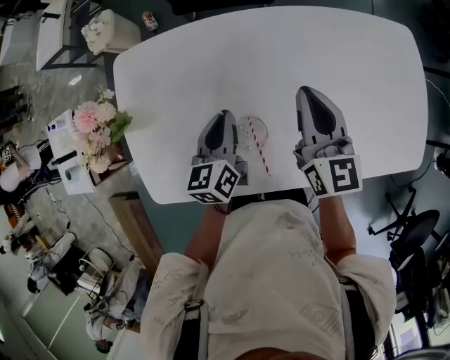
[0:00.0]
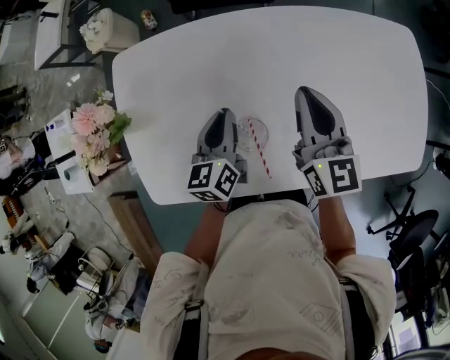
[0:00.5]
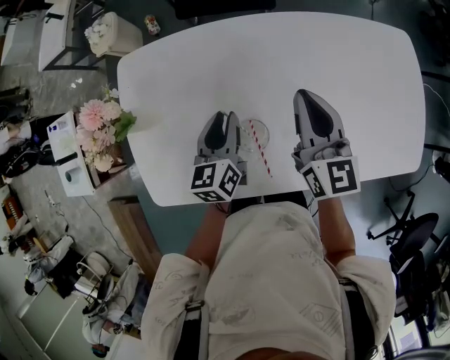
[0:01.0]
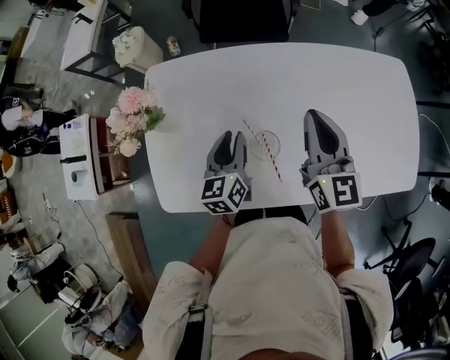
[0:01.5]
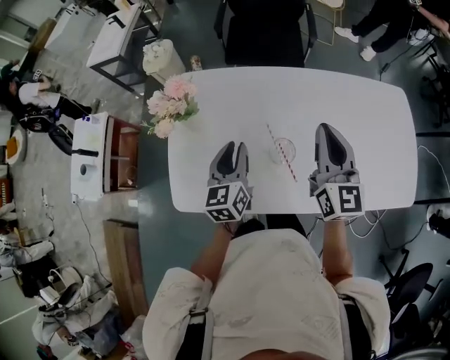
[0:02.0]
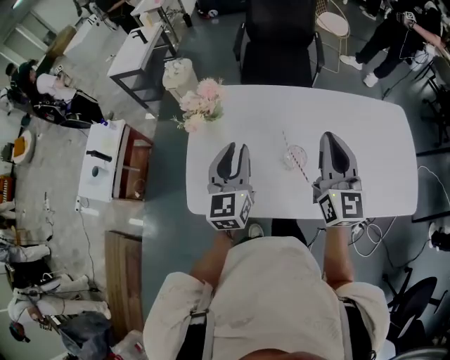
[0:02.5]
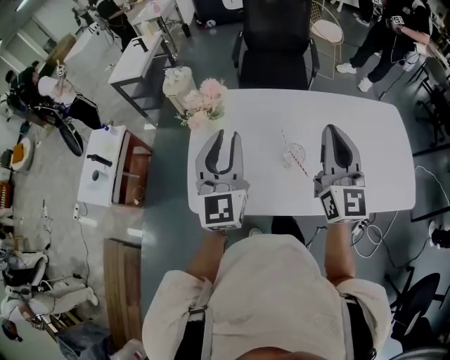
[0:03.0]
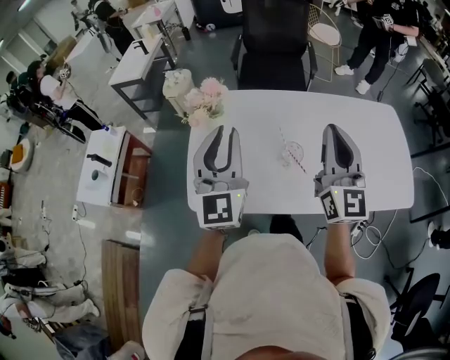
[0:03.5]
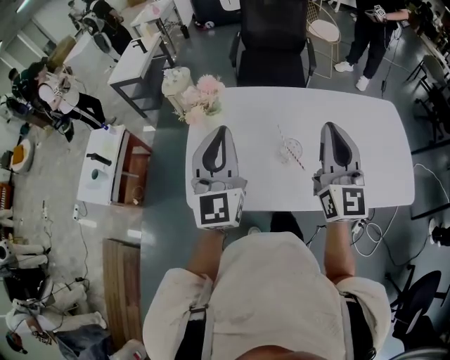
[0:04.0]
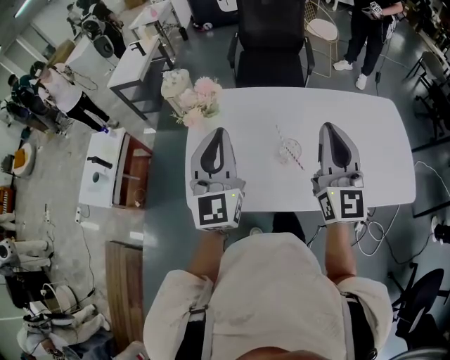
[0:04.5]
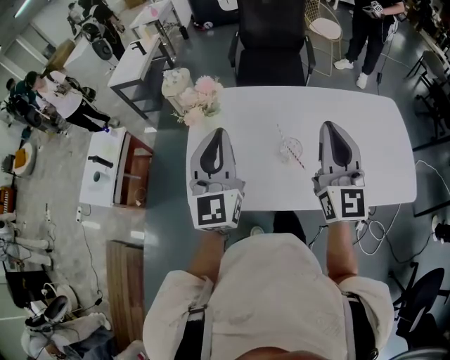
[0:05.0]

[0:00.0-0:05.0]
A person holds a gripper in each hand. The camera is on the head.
0:00.0 to 0:02.5: The right gripper travels upward, backward and to the left by some 25 cm. The left gripper heads upward, to the left and backward, covering some 25 cm, and changes its angle by approximately 30 degrees.
0:02.5 to 0:05.0: The right gripper heads backward and upward, covering approximately 10 cm, while the left gripper travels upward and backward by roughly 10 cm, and closes up.

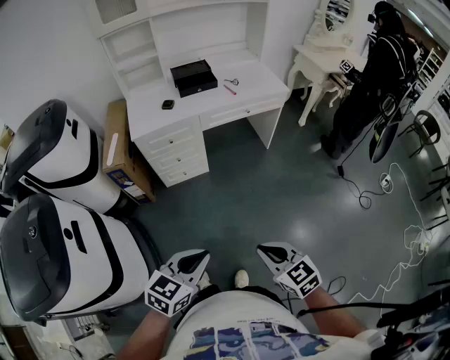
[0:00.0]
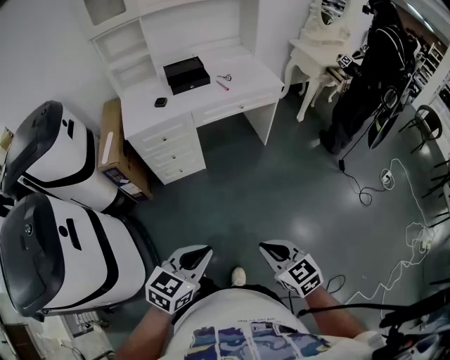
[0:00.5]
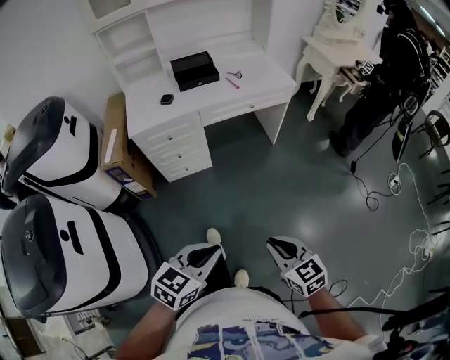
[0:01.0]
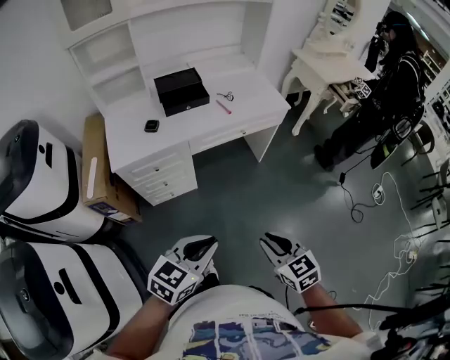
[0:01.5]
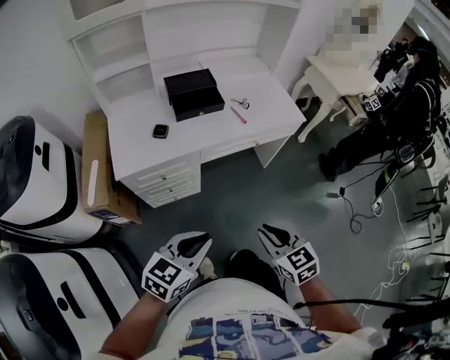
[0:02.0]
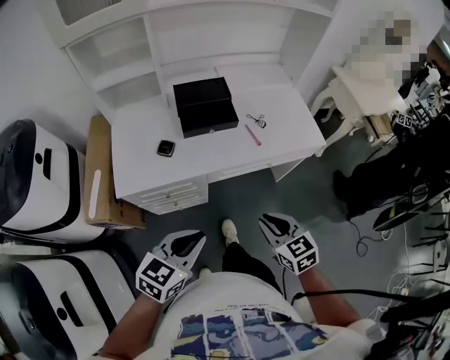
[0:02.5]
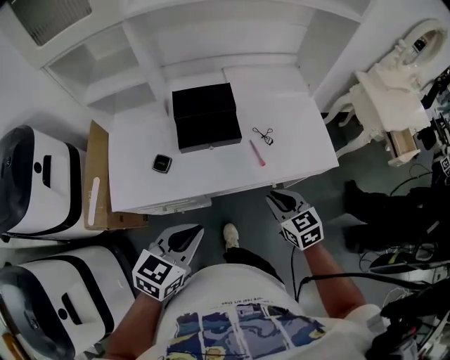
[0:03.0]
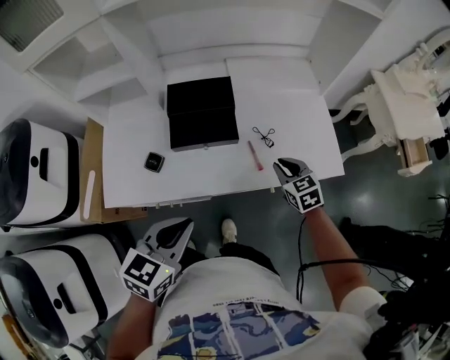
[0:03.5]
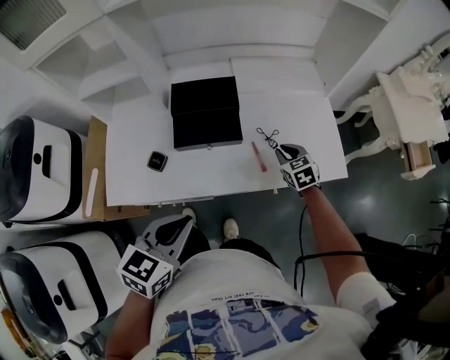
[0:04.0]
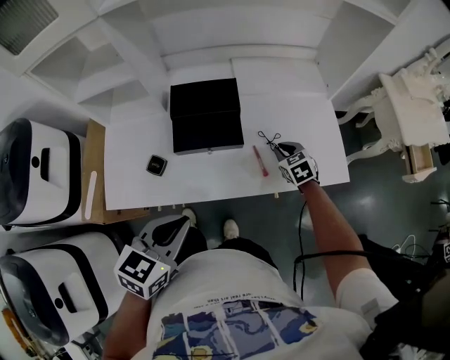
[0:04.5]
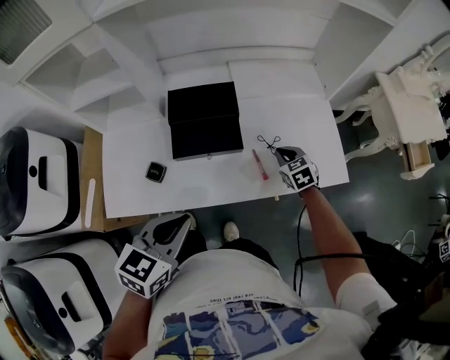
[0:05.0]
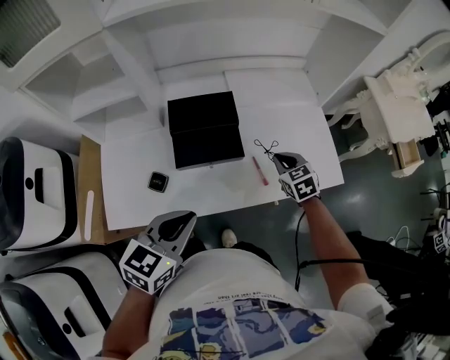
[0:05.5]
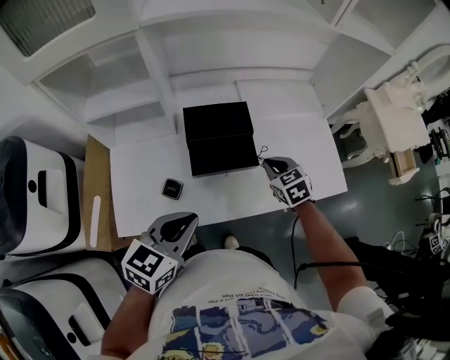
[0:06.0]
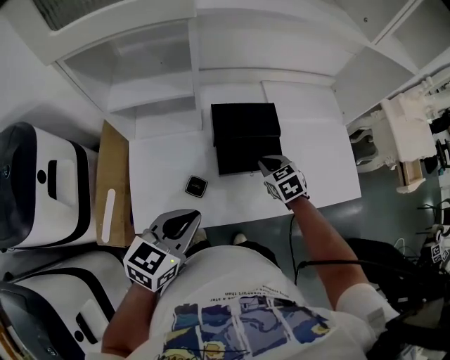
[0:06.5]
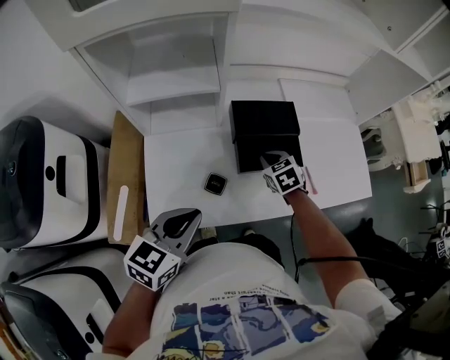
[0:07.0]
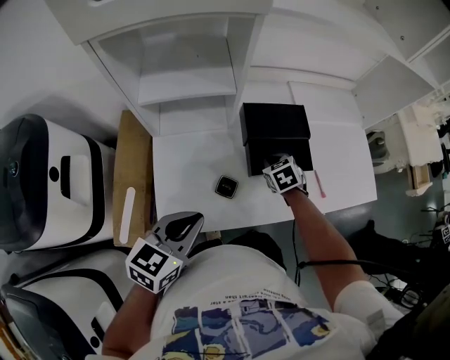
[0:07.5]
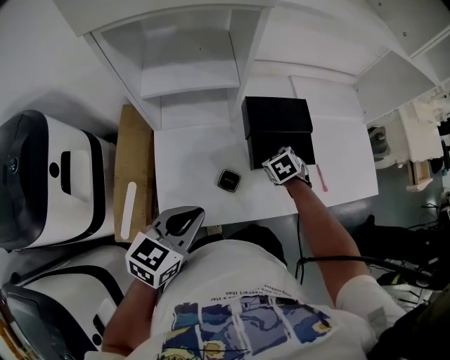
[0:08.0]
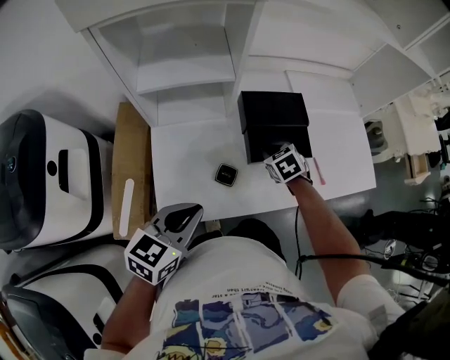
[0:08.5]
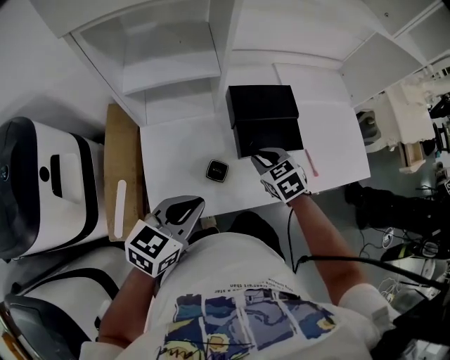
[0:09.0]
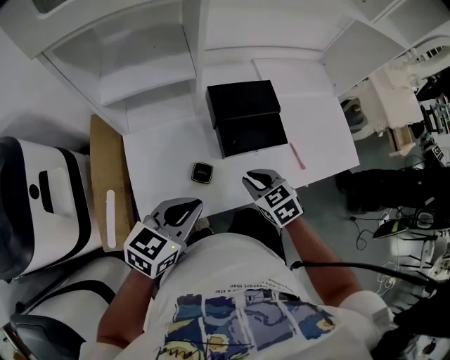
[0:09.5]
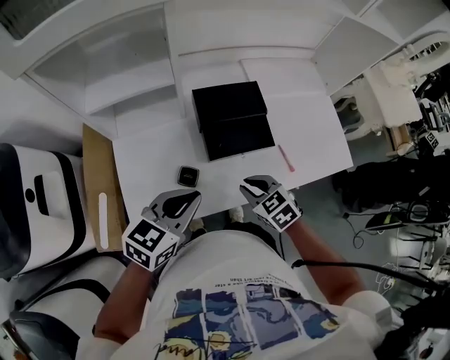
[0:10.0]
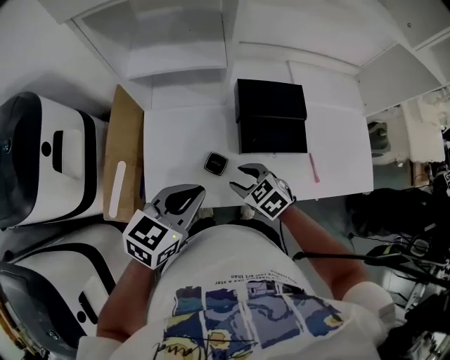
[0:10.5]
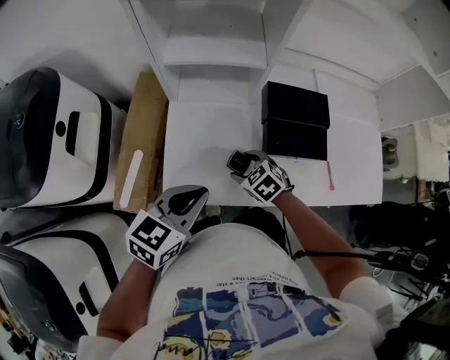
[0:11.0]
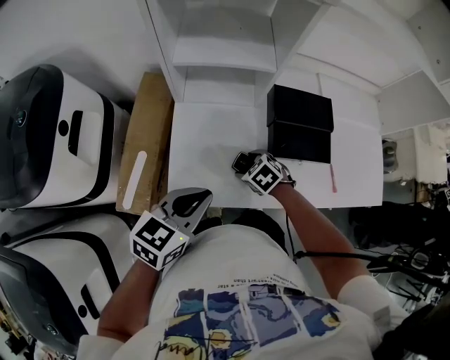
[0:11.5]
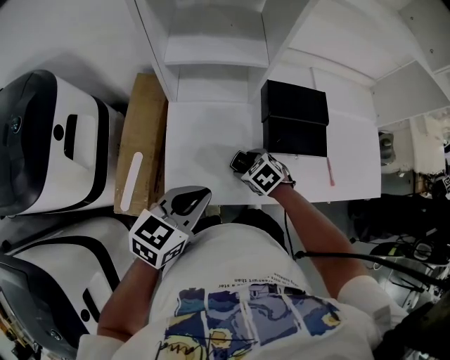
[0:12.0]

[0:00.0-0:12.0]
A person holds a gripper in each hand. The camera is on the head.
0:00.0 to 0:02.0: The grippers both shift forward by about 30 cm.
0:02.0 to 0:04.0: The right gripper moves forward, roughly 60 cm; the left gripper moves forward, about 30 cm, and rotates some 20 degrees.
0:04.0 to 0:06.0: The right gripper shifts approximately 15 cm to the left and upward; the left gripper shifts some 10 cm to the left and forward.
0:06.0 to 0:08.0: The right gripper travels to the left and downward by about 20 cm. Meanwhile the left gripper is displaced to the left by roughly 15 cm.
0:08.0 to 0:10.0: The right gripper goes some 15 cm backward and upward. The left gripper travels to the right by some 10 cm.
0:10.0 to 0:12.0: The right gripper moves to the left and downward, approximately 20 cm, turns by approximately 20 degrees, and opens; the left gripper shifts roughly 15 cm to the left.

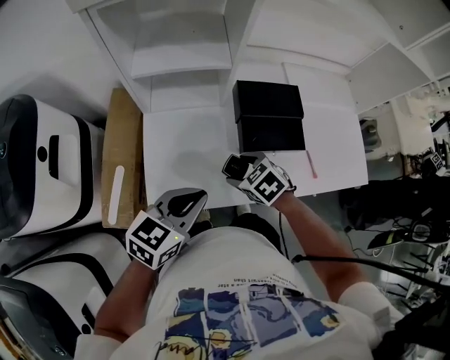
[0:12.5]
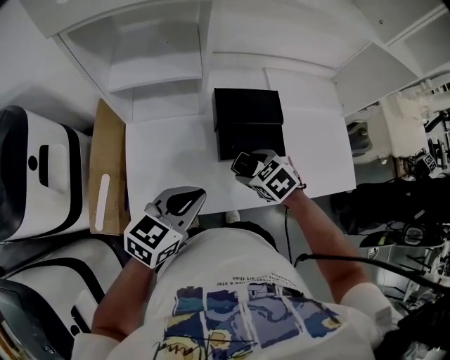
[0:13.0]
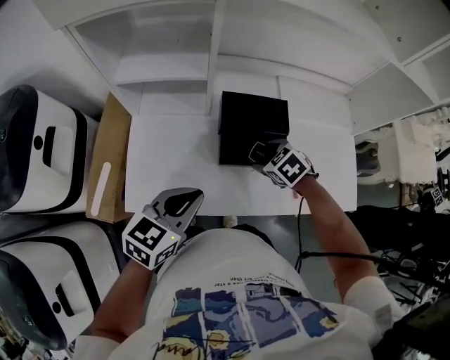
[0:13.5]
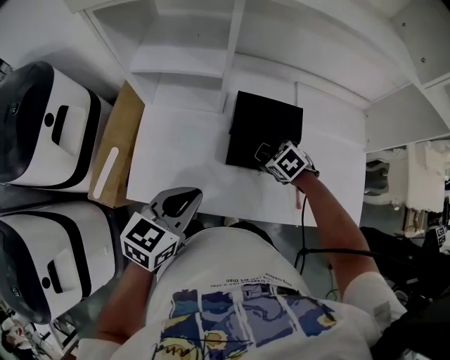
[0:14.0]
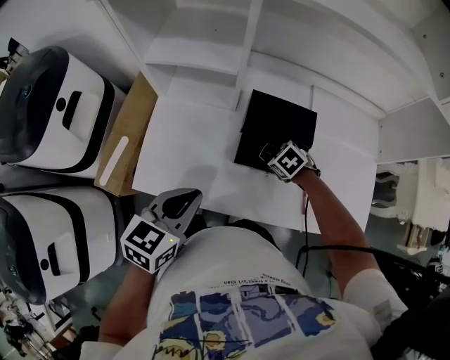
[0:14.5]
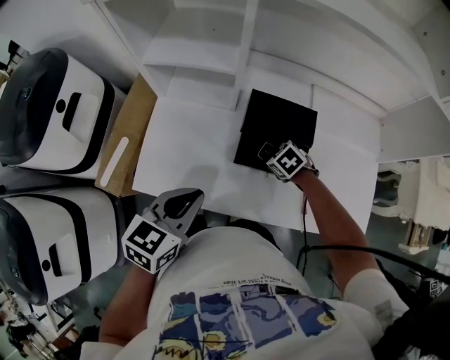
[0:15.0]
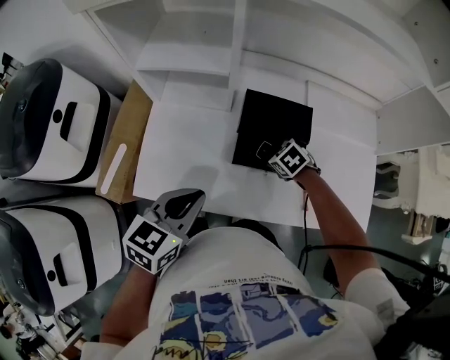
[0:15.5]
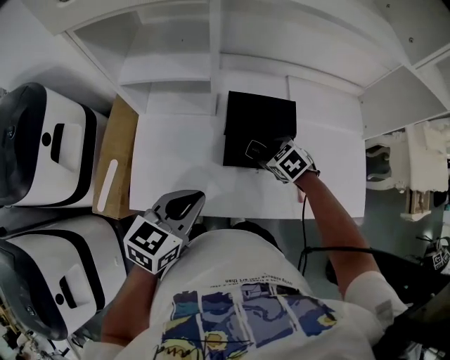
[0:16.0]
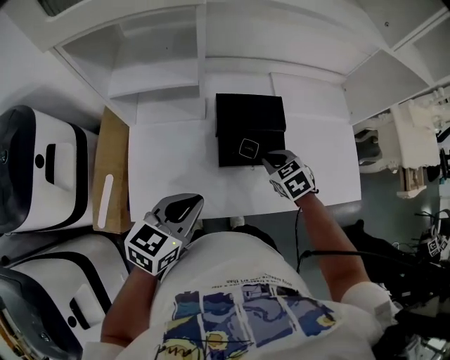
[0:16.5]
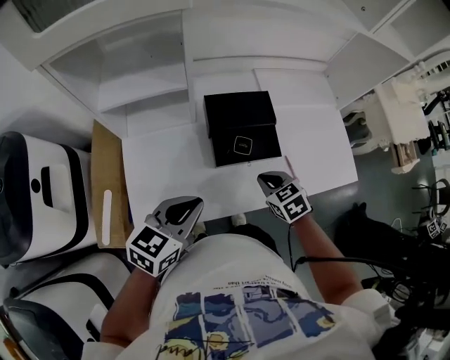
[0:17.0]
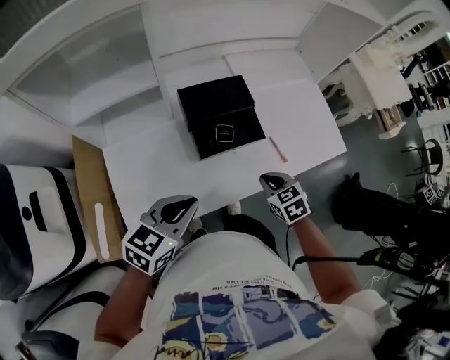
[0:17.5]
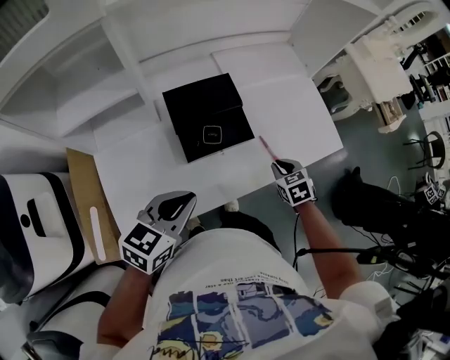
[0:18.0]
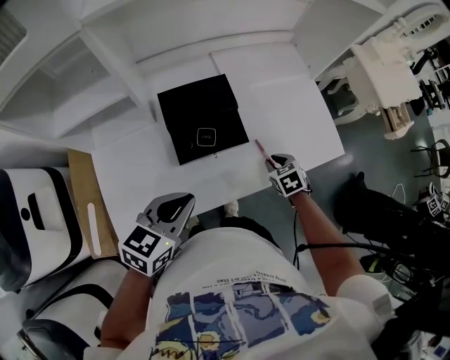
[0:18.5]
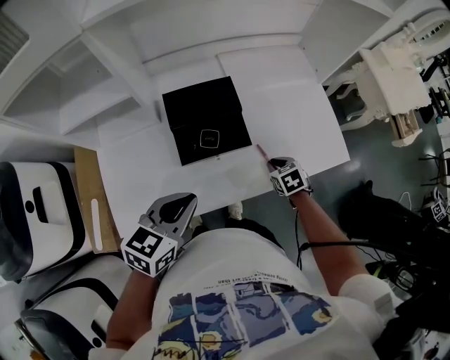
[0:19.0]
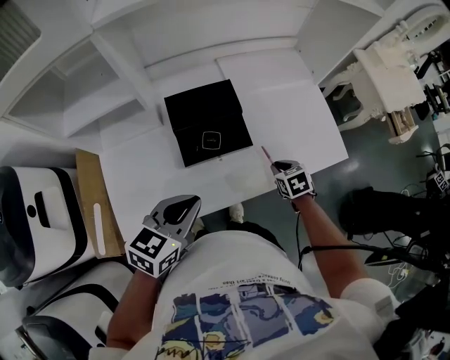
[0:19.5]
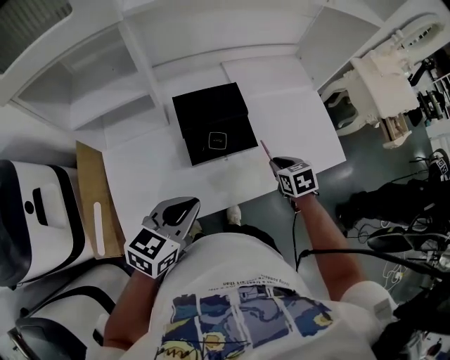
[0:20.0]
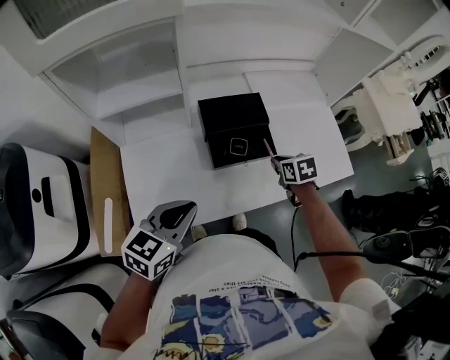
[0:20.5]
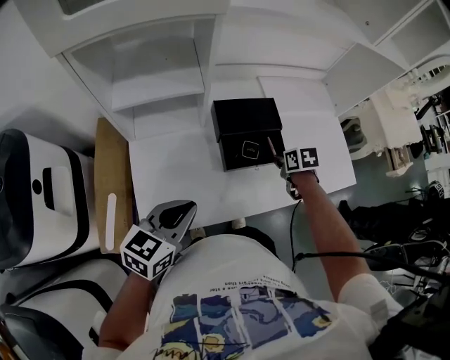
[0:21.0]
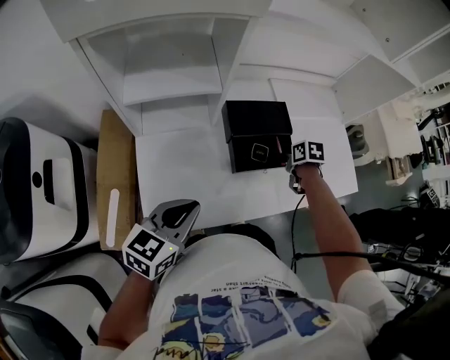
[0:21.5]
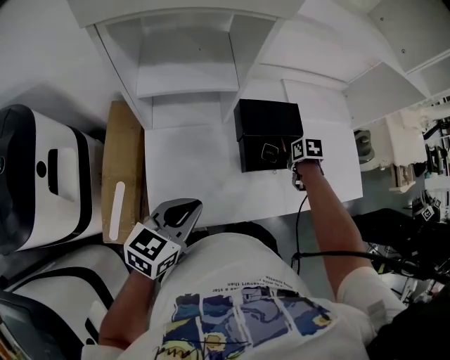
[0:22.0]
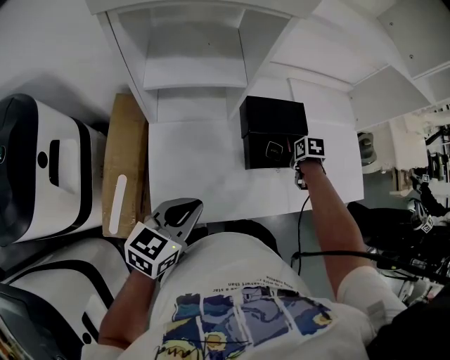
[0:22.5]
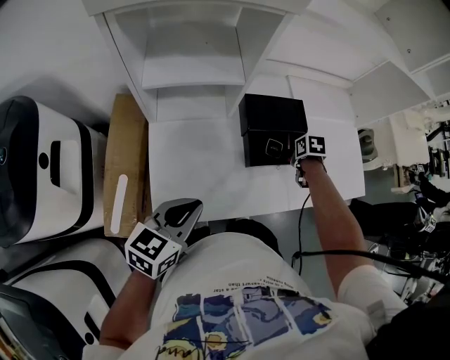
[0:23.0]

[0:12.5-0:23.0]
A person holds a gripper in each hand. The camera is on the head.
0:12.5 to 0:14.5: The left gripper moves to the right, about 5 cm, and rotates approximately 20 degrees. The right gripper goes some 20 cm to the right, forward and downward.
0:14.5 to 0:16.5: The right gripper moves upward, roughly 10 cm, swivels roughly 30 degrees, and closes up.
0:16.5 to 0:19.0: The right gripper moves about 20 cm, and rotates roughly 30 degrees. Meanwhile the left gripper moves roughly 10 cm.
0:19.0 to 0:21.0: The right gripper heads to the left and upward, covering approximately 15 cm, while the left gripper travels to the left by about 15 cm.
0:21.0 to 0:23.0: The right gripper shifts by some 5 cm, while the left gripper changes place by approximately 5 cm.
